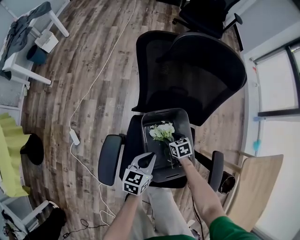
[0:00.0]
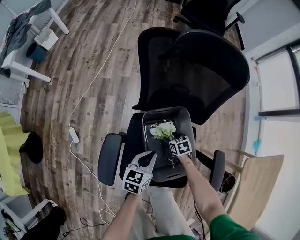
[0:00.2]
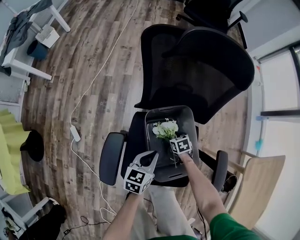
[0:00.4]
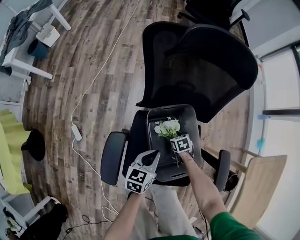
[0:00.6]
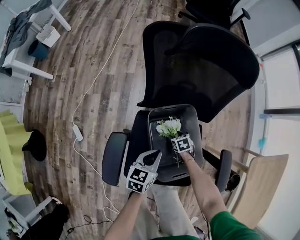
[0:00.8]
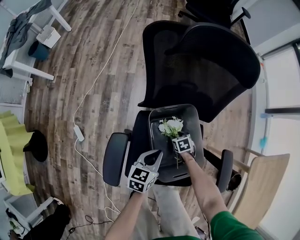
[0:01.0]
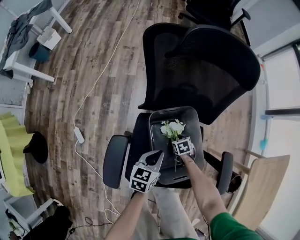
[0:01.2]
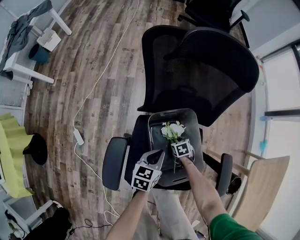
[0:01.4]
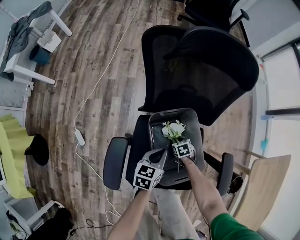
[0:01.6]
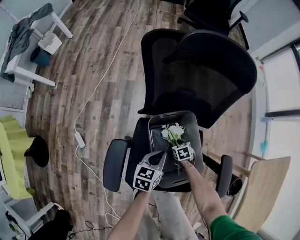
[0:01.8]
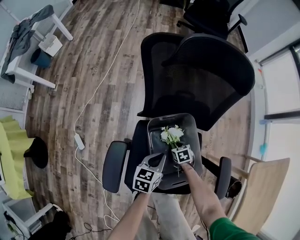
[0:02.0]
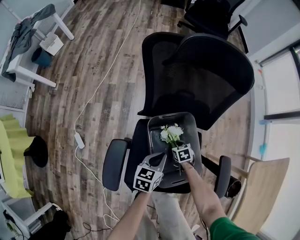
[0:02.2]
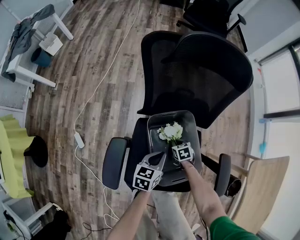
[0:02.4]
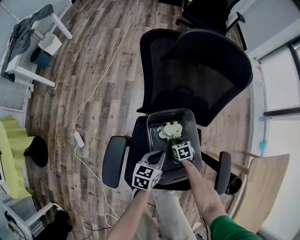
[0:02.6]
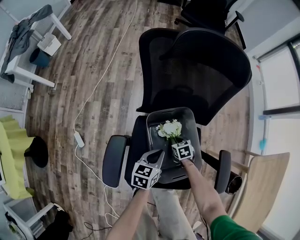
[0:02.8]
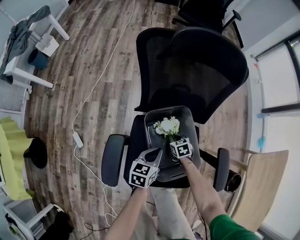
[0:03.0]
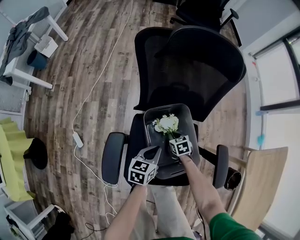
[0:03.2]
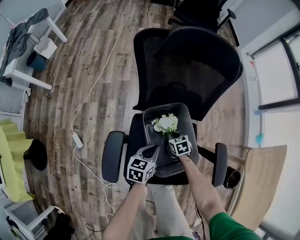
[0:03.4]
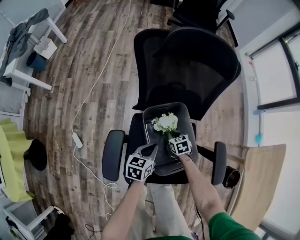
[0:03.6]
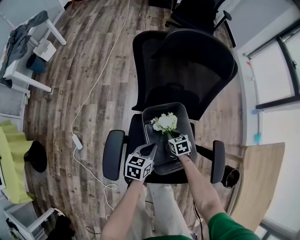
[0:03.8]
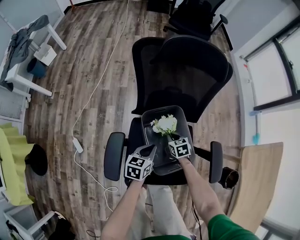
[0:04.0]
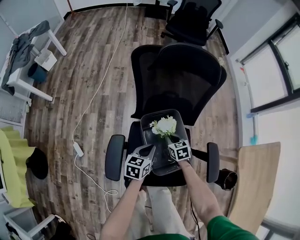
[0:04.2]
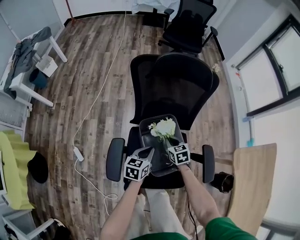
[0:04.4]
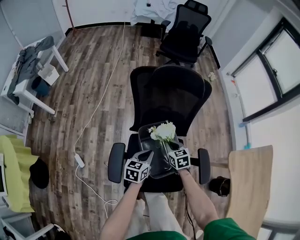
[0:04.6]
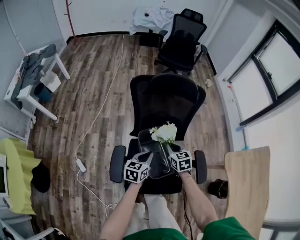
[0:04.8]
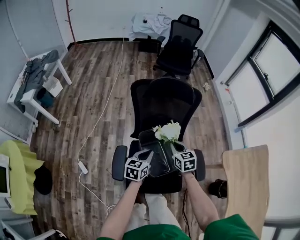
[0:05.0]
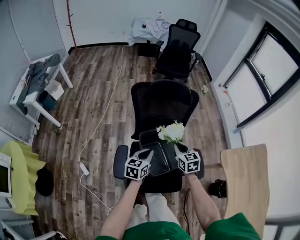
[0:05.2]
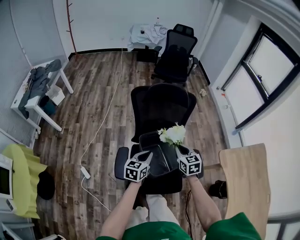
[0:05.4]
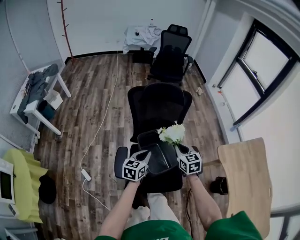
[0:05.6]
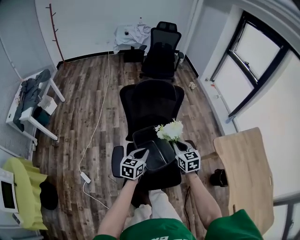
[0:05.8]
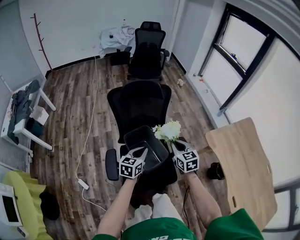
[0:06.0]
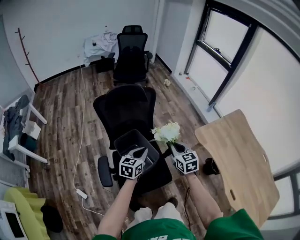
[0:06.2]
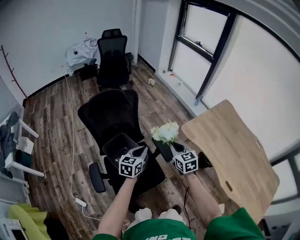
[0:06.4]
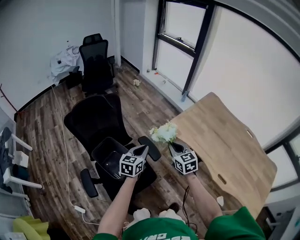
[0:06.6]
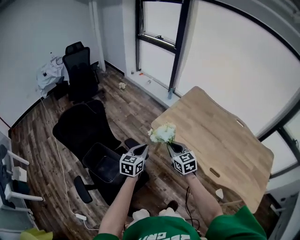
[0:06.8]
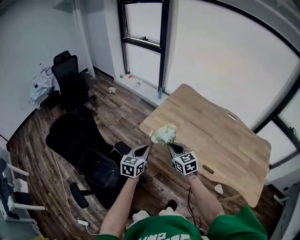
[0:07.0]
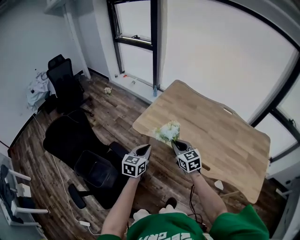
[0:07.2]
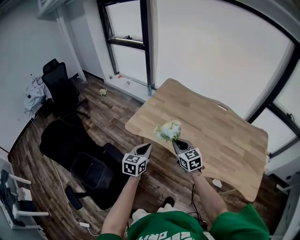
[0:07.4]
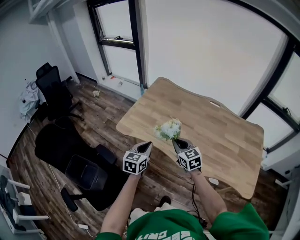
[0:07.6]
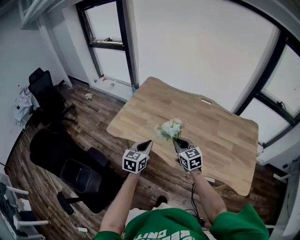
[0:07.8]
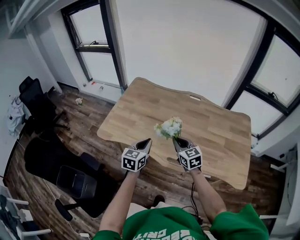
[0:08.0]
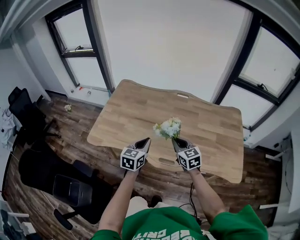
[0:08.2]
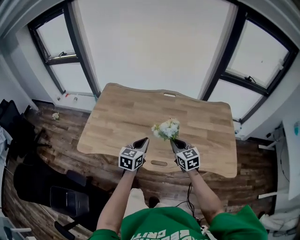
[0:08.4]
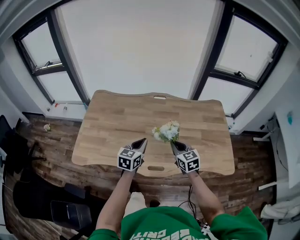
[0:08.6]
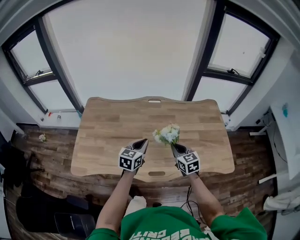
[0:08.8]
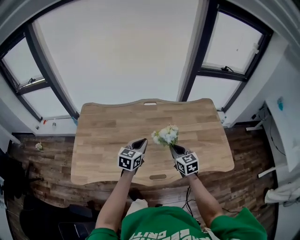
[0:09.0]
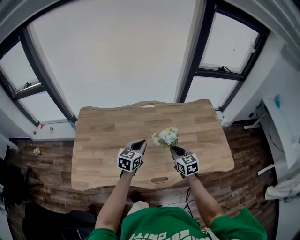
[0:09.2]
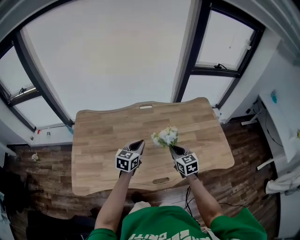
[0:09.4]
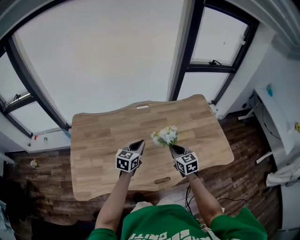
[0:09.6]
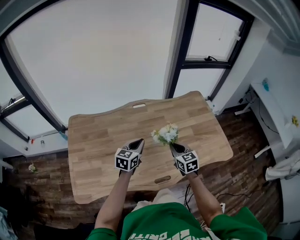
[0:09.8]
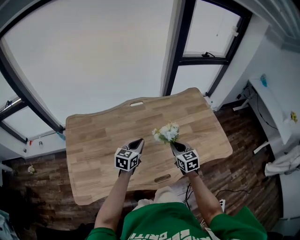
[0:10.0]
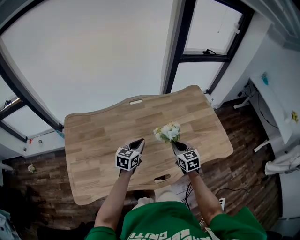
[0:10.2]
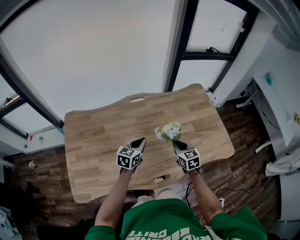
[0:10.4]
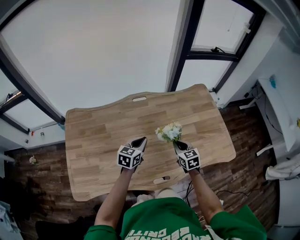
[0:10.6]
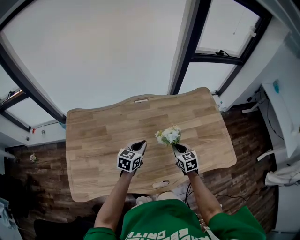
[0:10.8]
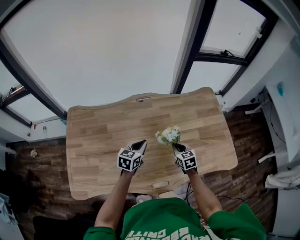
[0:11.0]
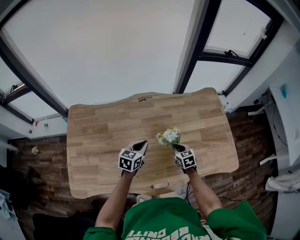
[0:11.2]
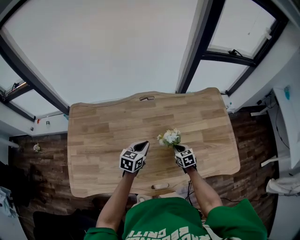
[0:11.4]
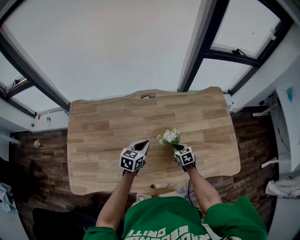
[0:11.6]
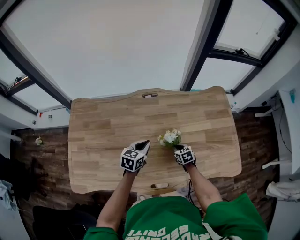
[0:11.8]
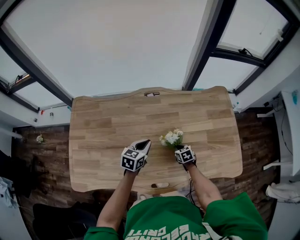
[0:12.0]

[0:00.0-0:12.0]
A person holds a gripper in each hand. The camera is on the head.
0.0 to 1.6 s: The right gripper heads downward, covering some 10 cm, and closes its fingers.
1.6 to 3.0 s: The right gripper heads upward, covering some 5 cm.
3.0 to 4.4 s: The right gripper heads upward, covering about 15 cm. The left gripper moves upward, some 10 cm.
4.4 to 6.0 s: Both grippers move upward, approximately 25 cm. The left gripper rotates approximately 20 degrees. Meanwhile the right gripper swivels roughly 30 degrees.
6.0 to 7.6 s: Both grippers are carried roughly 60 cm. The left gripper swivels approximately 40 degrees, while the right gripper rotates some 40 degrees.
7.6 to 9.0 s: The left gripper shifts by roughly 35 cm, and turns by about 40 degrees; the right gripper changes place by approximately 30 cm, and turns by some 40 degrees.
9.0 to 10.4 s: The left gripper travels forward and downward by some 10 cm, while the right gripper is displaced downward and forward by some 10 cm.
10.4 to 12.0 s: The right gripper travels downward by roughly 20 cm, and swivels roughly 30 degrees; the left gripper moves downward and forward, some 10 cm.

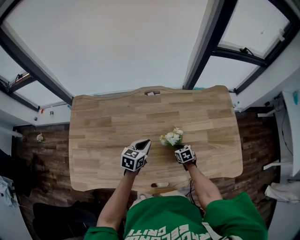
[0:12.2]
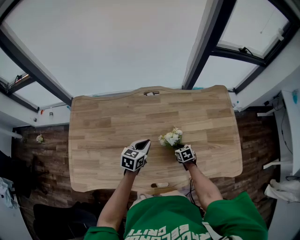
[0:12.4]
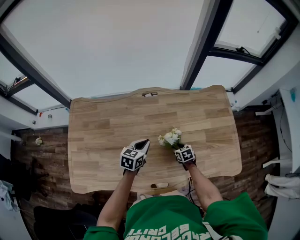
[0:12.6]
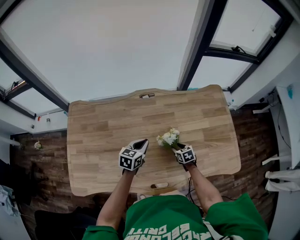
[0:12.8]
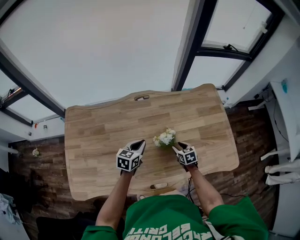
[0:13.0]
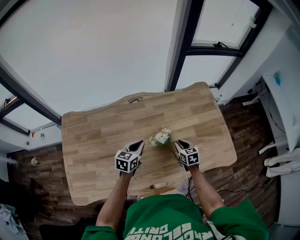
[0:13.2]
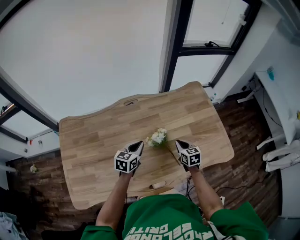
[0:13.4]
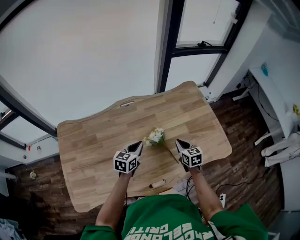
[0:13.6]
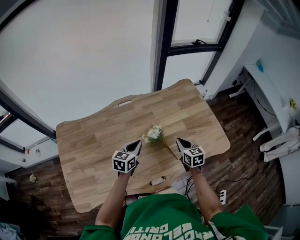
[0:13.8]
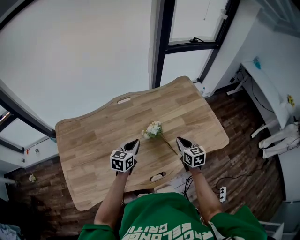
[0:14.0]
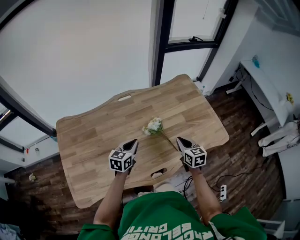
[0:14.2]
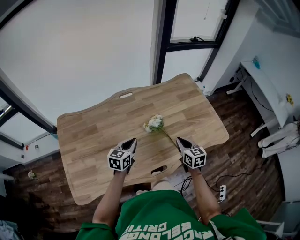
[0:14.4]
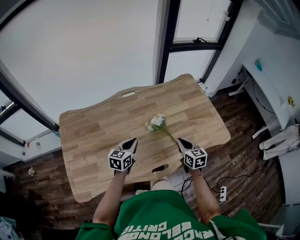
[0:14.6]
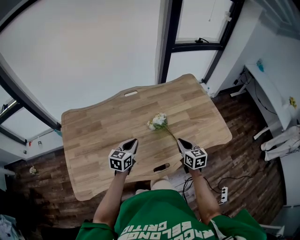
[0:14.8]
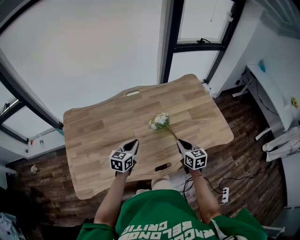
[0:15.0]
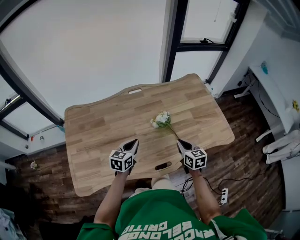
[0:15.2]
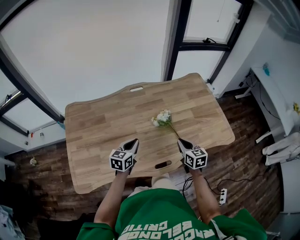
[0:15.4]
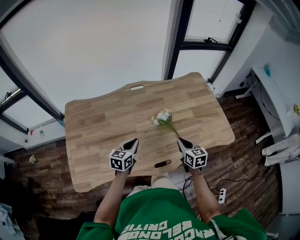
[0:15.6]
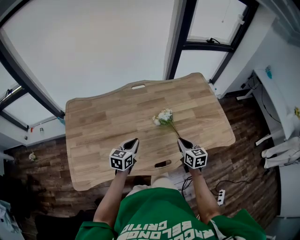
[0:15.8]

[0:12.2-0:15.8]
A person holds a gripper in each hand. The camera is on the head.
12.2 to 14.0 s: The right gripper goes about 25 cm upward, changes its angle by about 40 degrees, and opens, then closes again; the left gripper heads upward and backward, covering some 5 cm.
14.0 to 15.8 s: The left gripper moves backward and to the left, some 10 cm, while the right gripper heads backward, covering roughly 10 cm.

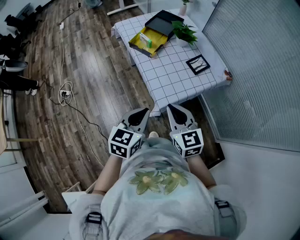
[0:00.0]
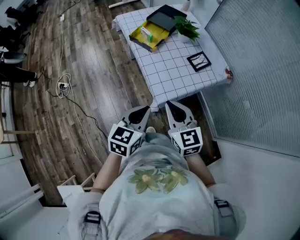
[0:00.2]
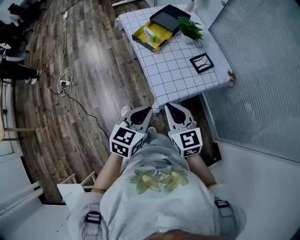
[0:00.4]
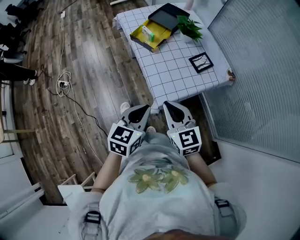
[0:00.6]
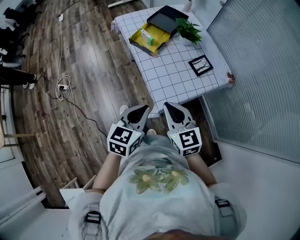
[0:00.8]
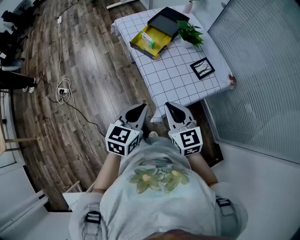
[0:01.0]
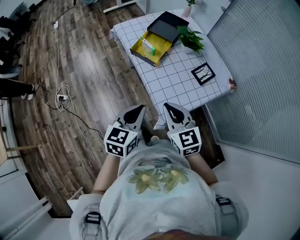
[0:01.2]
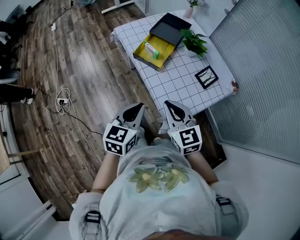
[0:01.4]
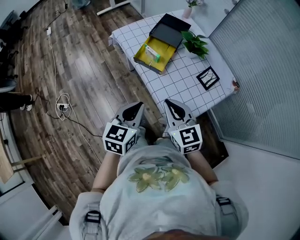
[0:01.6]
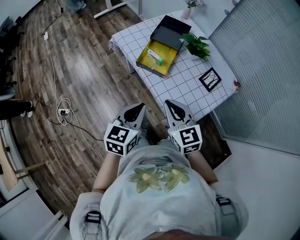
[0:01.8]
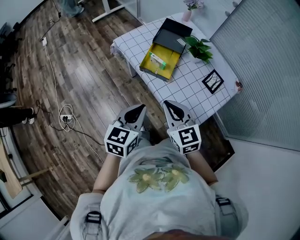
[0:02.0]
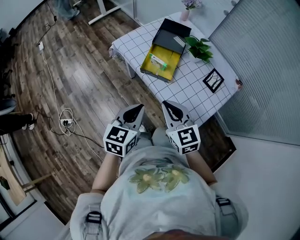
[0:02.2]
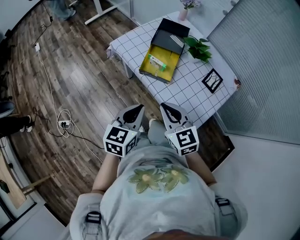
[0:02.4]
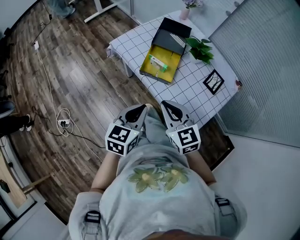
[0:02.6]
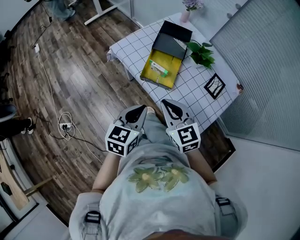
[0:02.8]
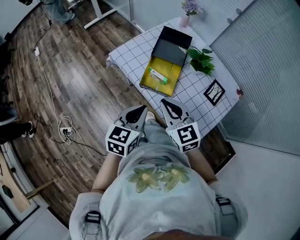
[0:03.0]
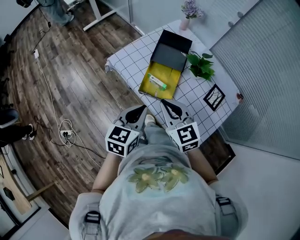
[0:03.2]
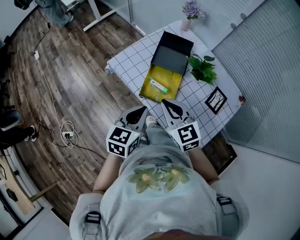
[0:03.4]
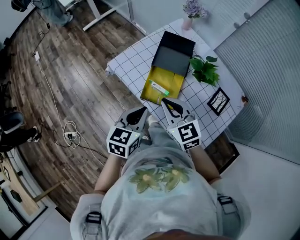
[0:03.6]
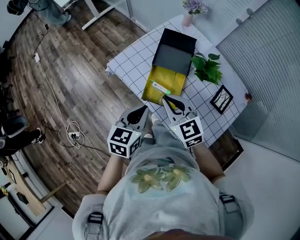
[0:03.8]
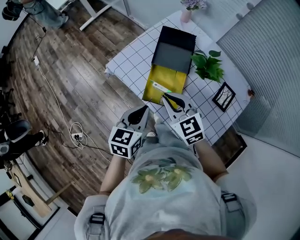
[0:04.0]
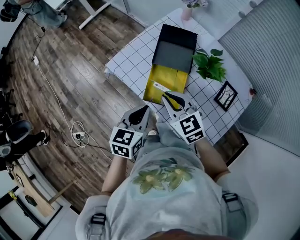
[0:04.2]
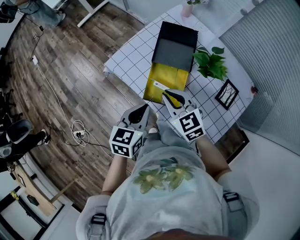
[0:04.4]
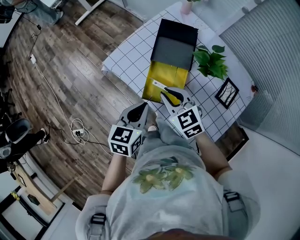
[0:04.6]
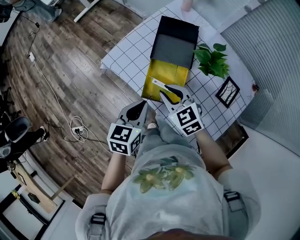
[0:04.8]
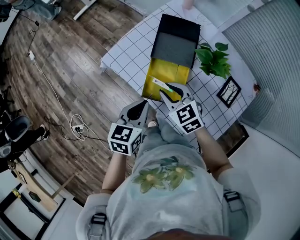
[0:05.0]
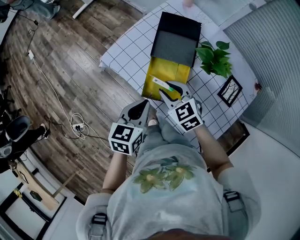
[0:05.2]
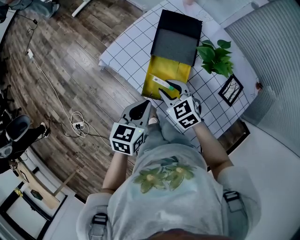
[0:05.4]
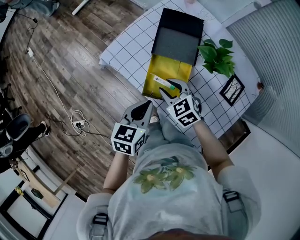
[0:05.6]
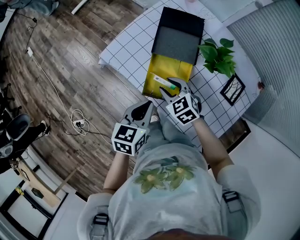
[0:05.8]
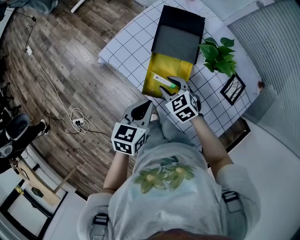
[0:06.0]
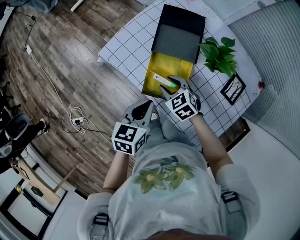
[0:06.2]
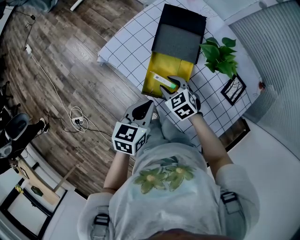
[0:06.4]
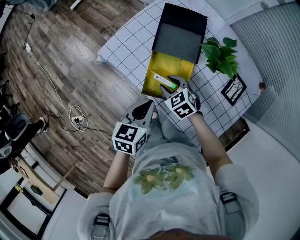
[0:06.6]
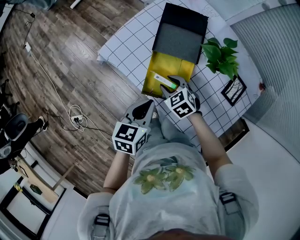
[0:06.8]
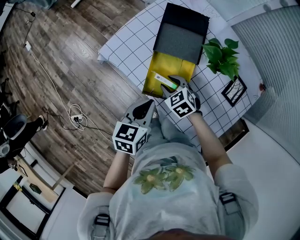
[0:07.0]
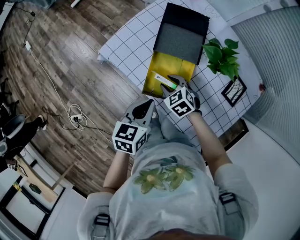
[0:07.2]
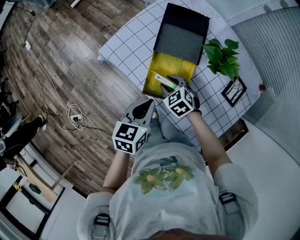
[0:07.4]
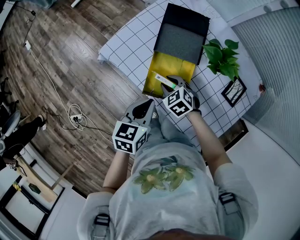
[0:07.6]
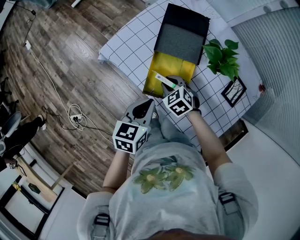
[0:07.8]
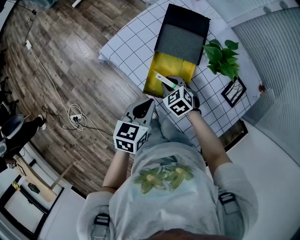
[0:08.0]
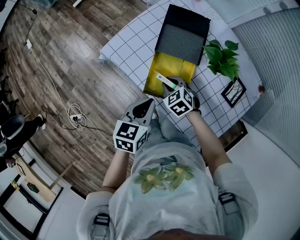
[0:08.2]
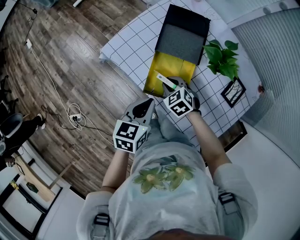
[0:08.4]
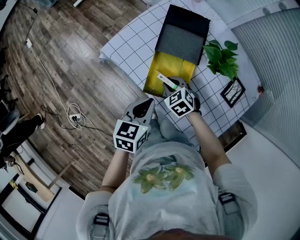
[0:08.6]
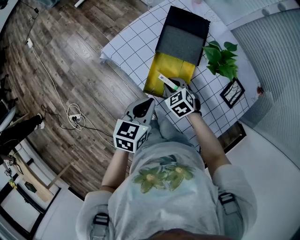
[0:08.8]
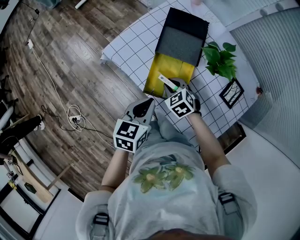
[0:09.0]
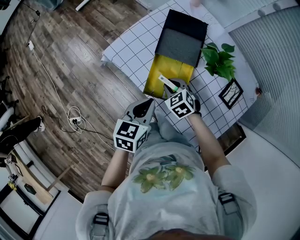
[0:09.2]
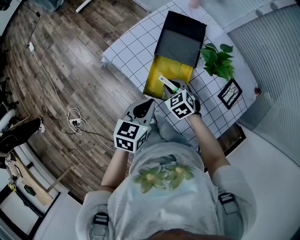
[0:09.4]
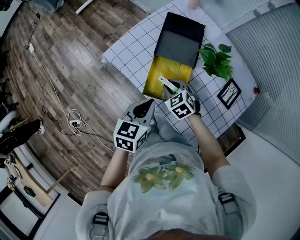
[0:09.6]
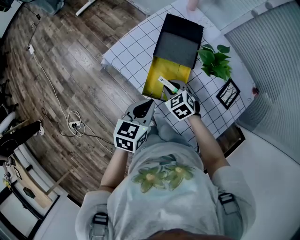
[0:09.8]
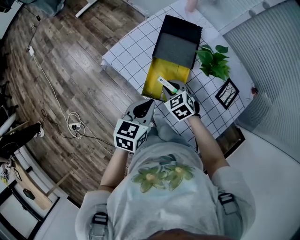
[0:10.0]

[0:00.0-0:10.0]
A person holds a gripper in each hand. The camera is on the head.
0.0 to 1.4 s: The two grippers go some 20 cm forward and to the left.
1.4 to 2.8 s: The two grippers go about 15 cm forward and to the left.
2.8 to 4.2 s: The two grippers go some 15 cm forward.
4.2 to 5.8 s: The right gripper moves downward, about 15 cm, and opens. Meanwhile the left gripper is displaced downward by approximately 5 cm.
5.8 to 7.2 s: The right gripper heads downward, covering about 5 cm.
7.2 to 8.6 s: Both grippers stay about where they are.
8.6 to 10.0 s: The right gripper shifts by about 5 cm.
